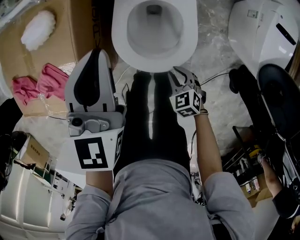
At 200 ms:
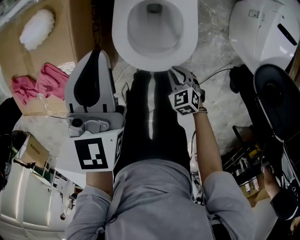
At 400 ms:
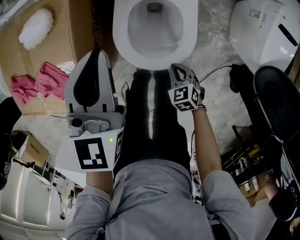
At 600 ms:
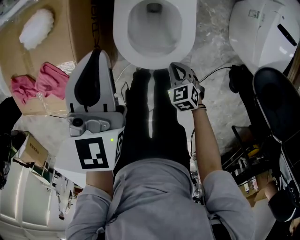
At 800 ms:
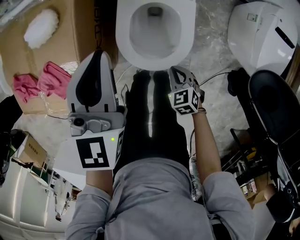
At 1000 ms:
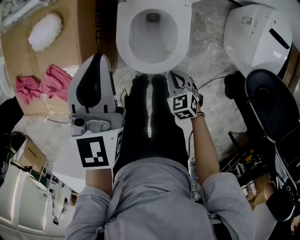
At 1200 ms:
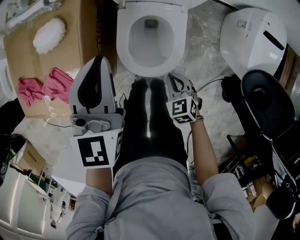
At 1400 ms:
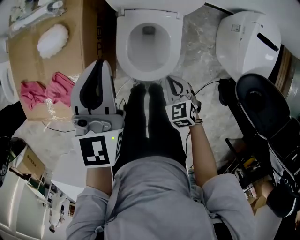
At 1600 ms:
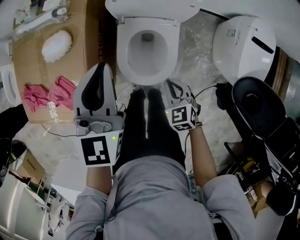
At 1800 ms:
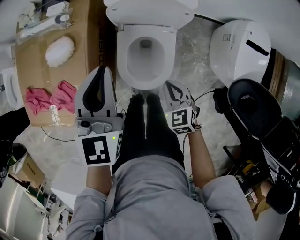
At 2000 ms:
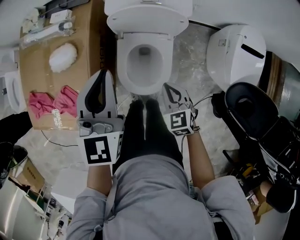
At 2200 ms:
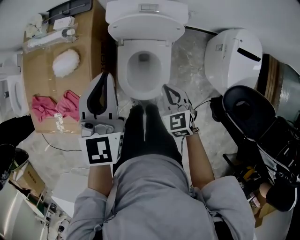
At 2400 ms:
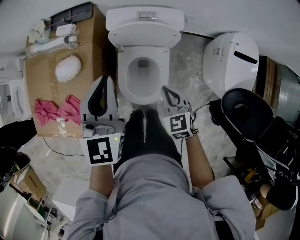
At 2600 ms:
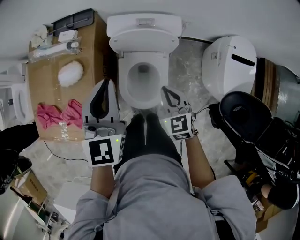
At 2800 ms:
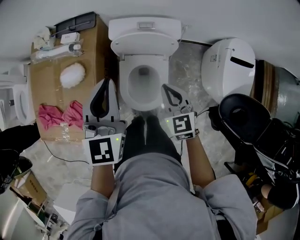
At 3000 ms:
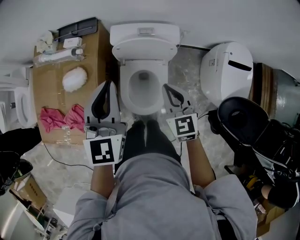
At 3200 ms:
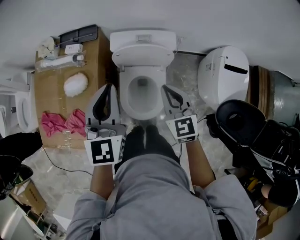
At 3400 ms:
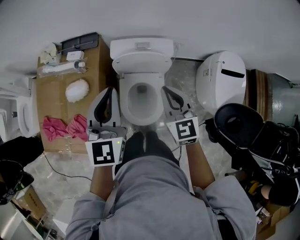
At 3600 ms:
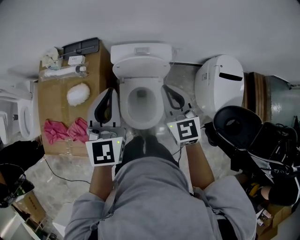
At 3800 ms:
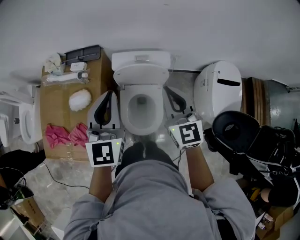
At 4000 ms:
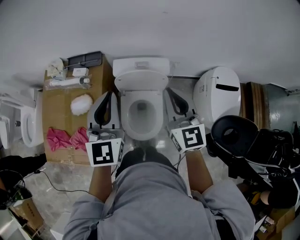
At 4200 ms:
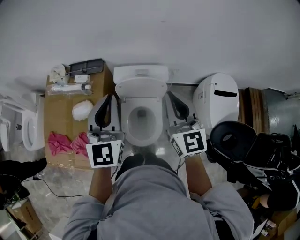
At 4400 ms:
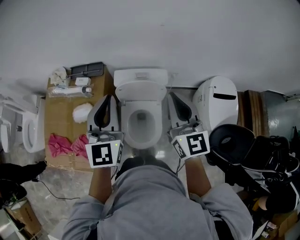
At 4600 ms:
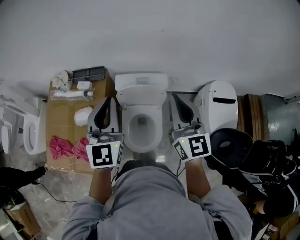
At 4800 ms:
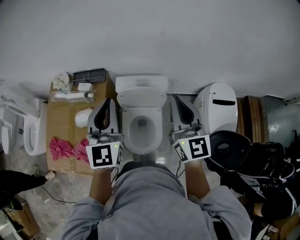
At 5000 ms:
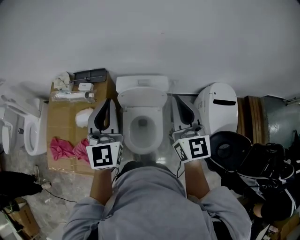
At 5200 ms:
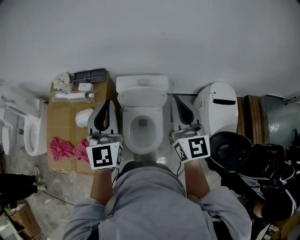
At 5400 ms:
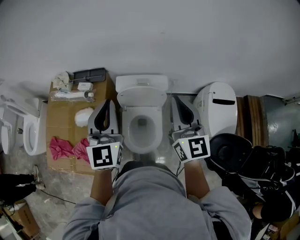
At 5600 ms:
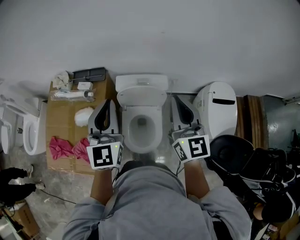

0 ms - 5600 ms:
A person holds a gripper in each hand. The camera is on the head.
0 ms - 1400 ms: The right gripper shifts approximately 10 cm upward and forward; the left gripper heads upward, covering about 5 cm.
1400 ms - 2800 ms: The right gripper shifts roughly 25 cm upward and forward, and swivels some 20 degrees. The left gripper heads upward, covering approximately 10 cm.
2800 ms - 4200 ms: The right gripper travels upward by approximately 25 cm, and turns by about 30 degrees, while the left gripper is displaced upward by about 10 cm.
4200 ms - 5600 ms: The right gripper shifts by some 5 cm.

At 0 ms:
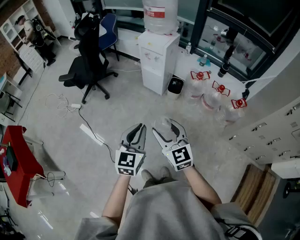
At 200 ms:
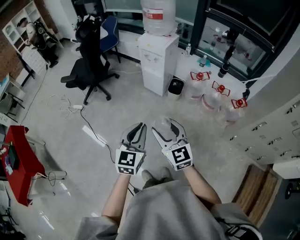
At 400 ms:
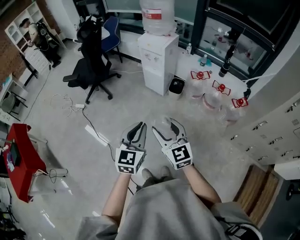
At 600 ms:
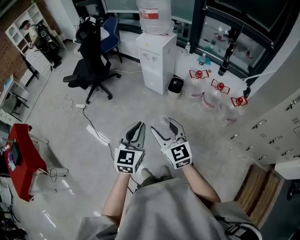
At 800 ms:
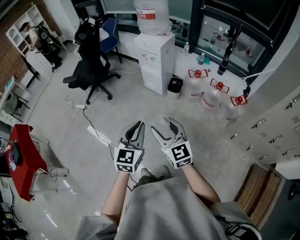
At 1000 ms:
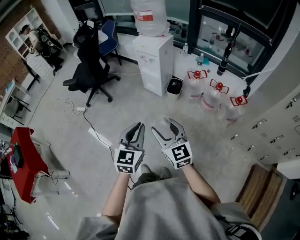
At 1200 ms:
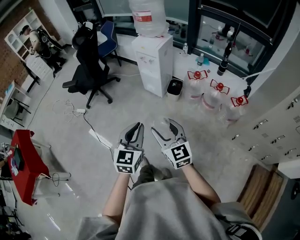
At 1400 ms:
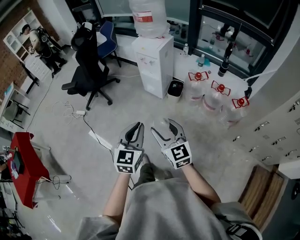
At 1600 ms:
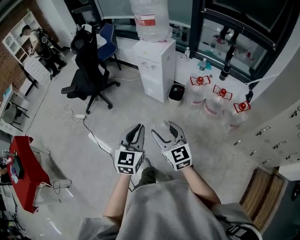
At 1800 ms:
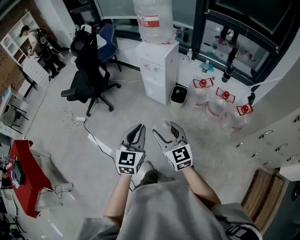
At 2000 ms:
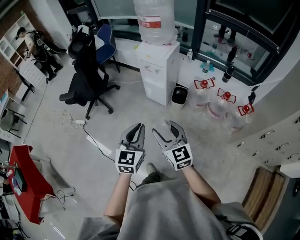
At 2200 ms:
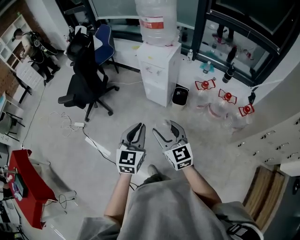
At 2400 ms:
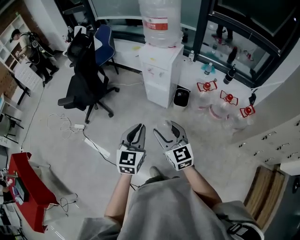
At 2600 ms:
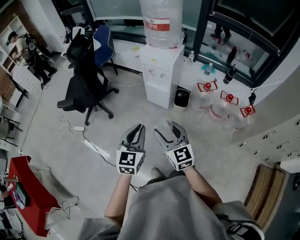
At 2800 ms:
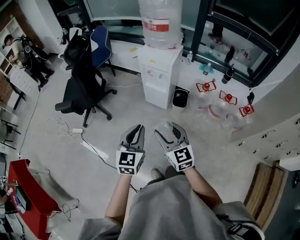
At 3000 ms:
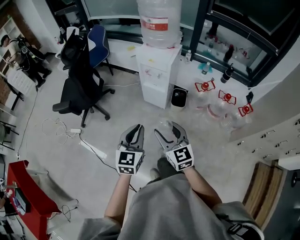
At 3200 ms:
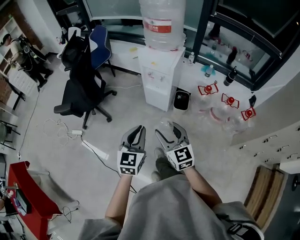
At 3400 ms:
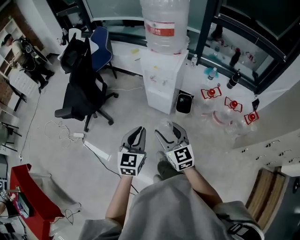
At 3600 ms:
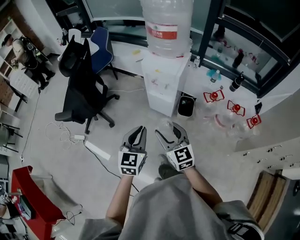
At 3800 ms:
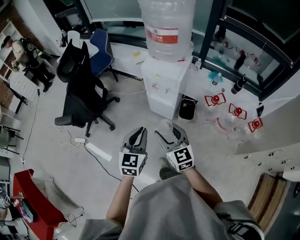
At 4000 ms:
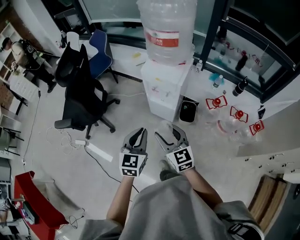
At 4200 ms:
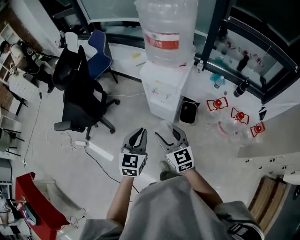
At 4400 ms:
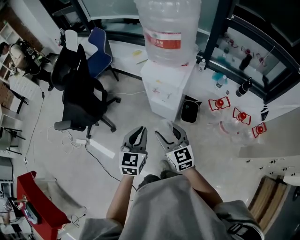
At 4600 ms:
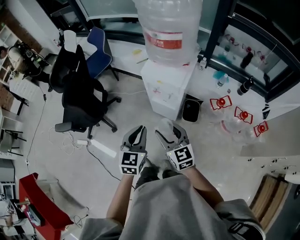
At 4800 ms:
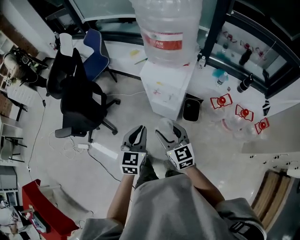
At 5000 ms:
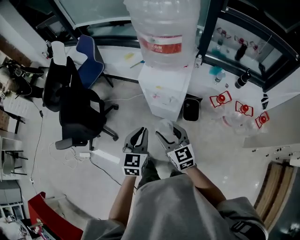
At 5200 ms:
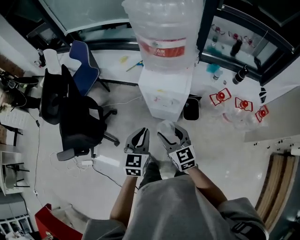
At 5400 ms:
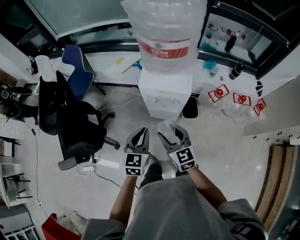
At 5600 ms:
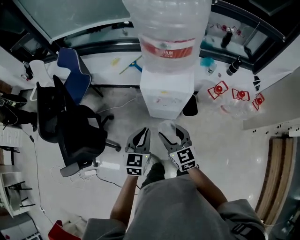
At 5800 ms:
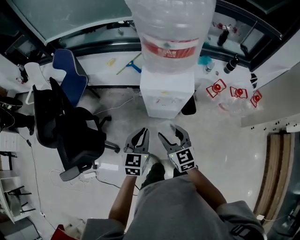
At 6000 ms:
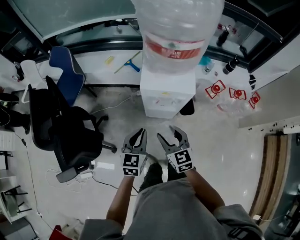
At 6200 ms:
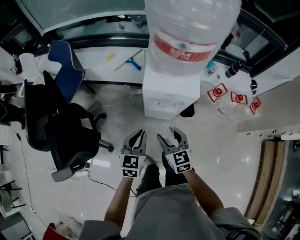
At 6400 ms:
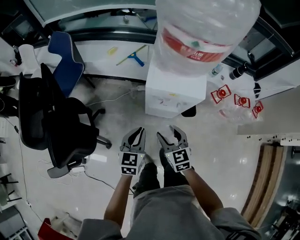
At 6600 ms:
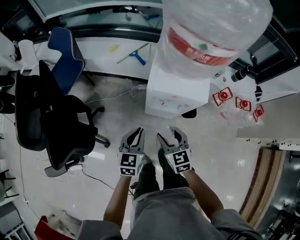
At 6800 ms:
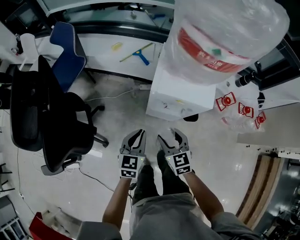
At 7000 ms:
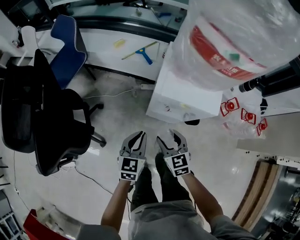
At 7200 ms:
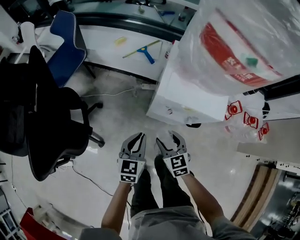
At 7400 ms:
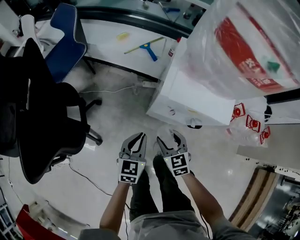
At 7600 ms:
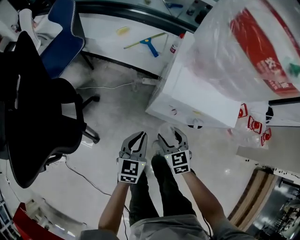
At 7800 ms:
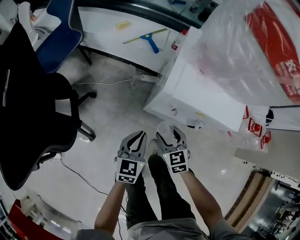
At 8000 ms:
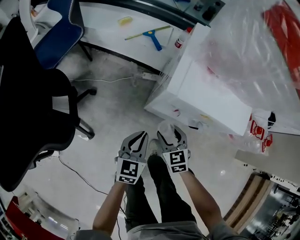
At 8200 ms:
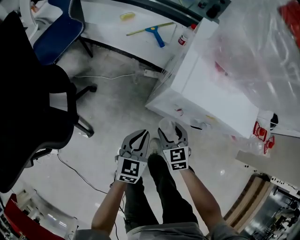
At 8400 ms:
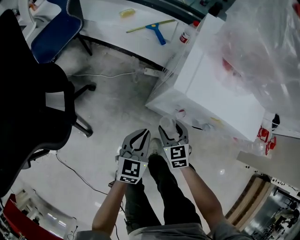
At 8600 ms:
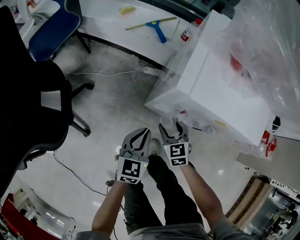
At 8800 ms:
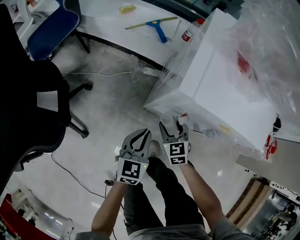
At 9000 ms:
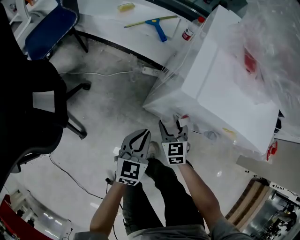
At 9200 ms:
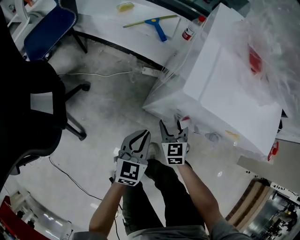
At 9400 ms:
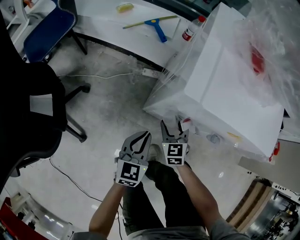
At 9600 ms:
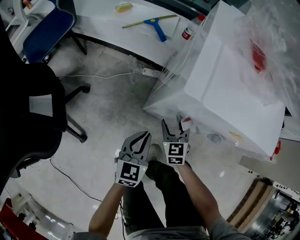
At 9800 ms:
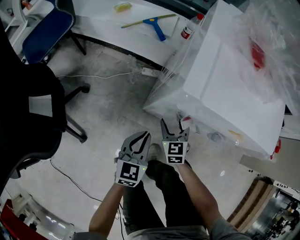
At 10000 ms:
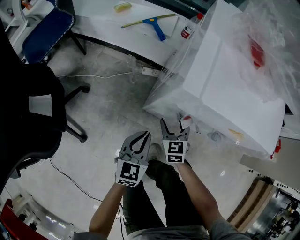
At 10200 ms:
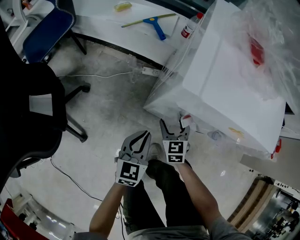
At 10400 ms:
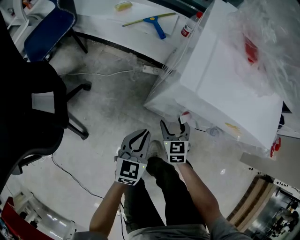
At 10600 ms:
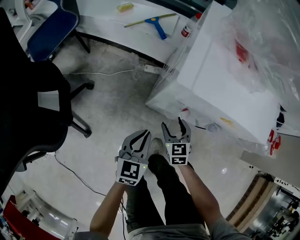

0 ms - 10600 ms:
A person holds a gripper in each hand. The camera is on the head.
0 ms - 1600 ms: The grippers both shift to the right by some 5 cm.
1600 ms - 3000 ms: The grippers both shift forward and to the left by about 20 cm.
3000 ms - 4600 ms: Both grippers travel together forward, about 25 cm.
4600 ms - 6000 ms: Both grippers move forward, to the left and downward, approximately 20 cm. The left gripper turns by approximately 20 degrees, while the right gripper changes its angle by about 30 degrees.
6000 ms - 7600 ms: Both grippers travel together downward and forward, roughly 25 cm.
7600 ms - 9000 ms: The left gripper goes approximately 15 cm downward. Meanwhile the right gripper travels downward and forward by some 20 cm.
9000 ms - 10600 ms: The grippers make only small movements.

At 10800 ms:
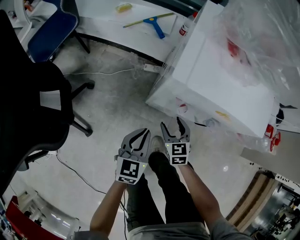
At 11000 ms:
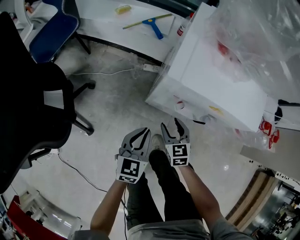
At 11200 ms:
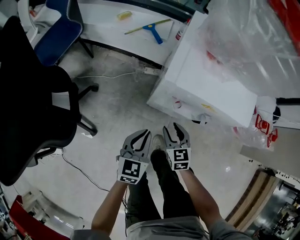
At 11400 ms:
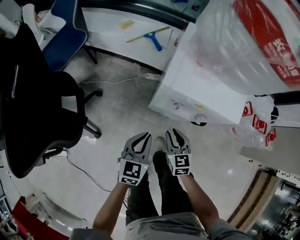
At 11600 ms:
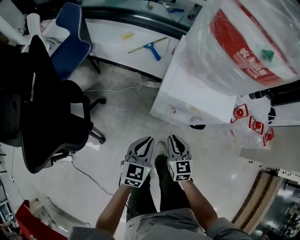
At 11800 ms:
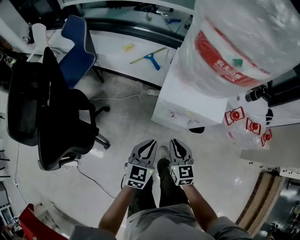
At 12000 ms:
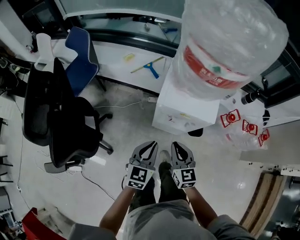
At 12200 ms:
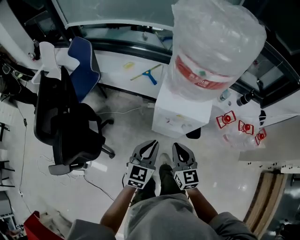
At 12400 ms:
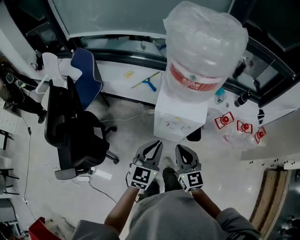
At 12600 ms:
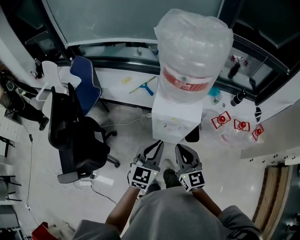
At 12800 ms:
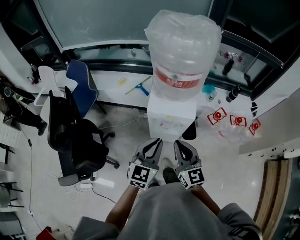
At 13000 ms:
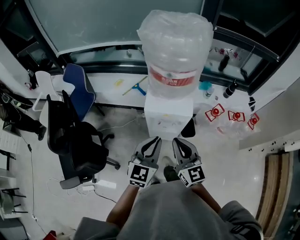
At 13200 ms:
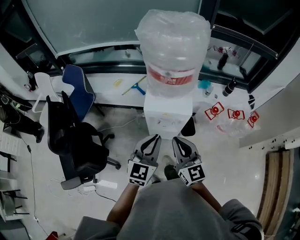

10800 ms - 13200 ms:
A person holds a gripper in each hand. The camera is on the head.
10800 ms - 12000 ms: The grippers both shift upward by about 30 cm. The right gripper closes up.
12000 ms - 13200 ms: Both grippers move upward, some 20 cm.

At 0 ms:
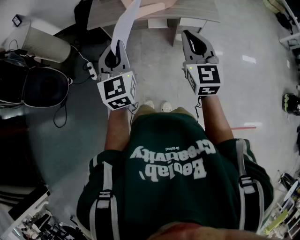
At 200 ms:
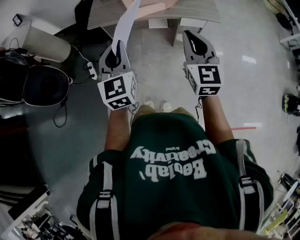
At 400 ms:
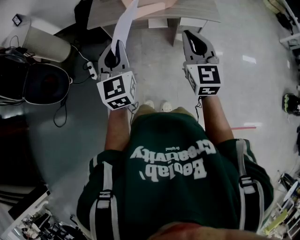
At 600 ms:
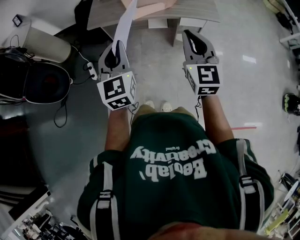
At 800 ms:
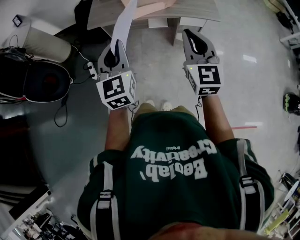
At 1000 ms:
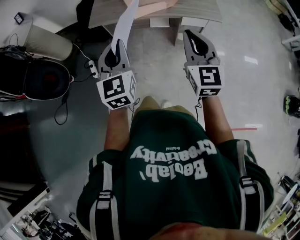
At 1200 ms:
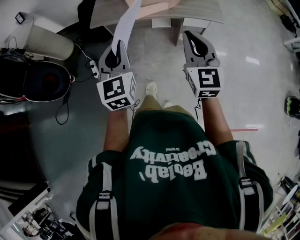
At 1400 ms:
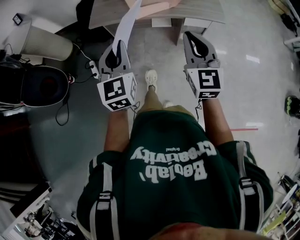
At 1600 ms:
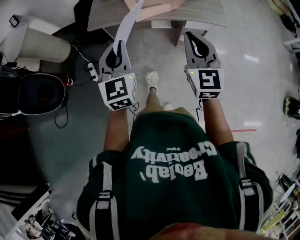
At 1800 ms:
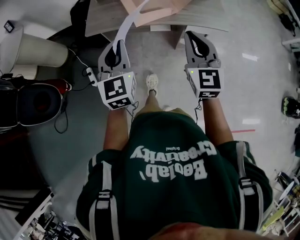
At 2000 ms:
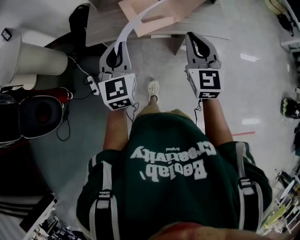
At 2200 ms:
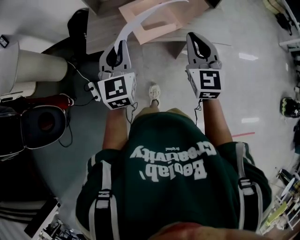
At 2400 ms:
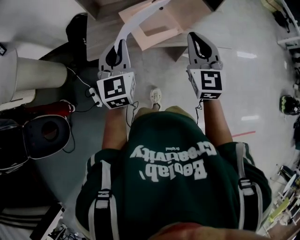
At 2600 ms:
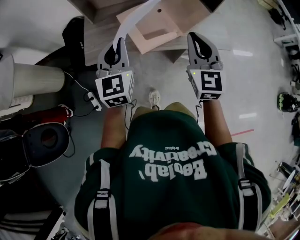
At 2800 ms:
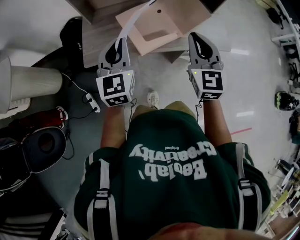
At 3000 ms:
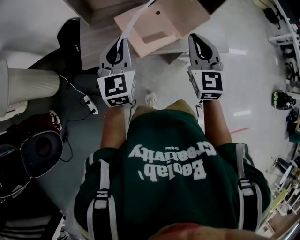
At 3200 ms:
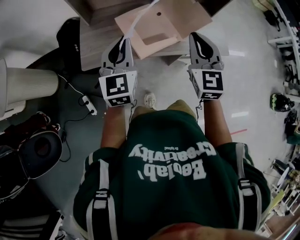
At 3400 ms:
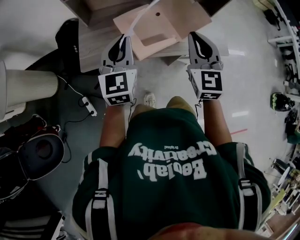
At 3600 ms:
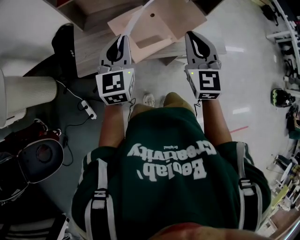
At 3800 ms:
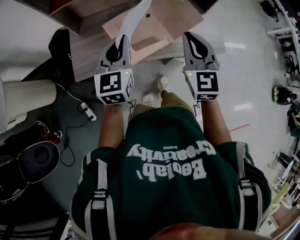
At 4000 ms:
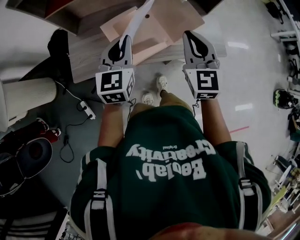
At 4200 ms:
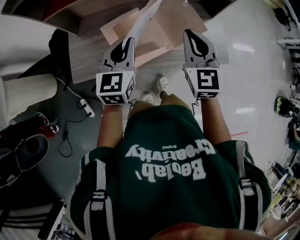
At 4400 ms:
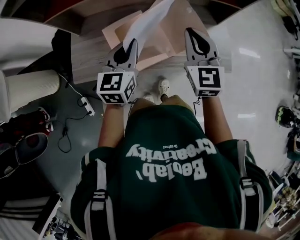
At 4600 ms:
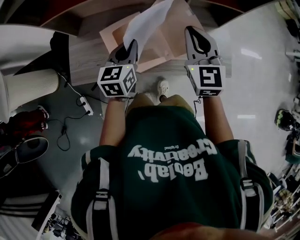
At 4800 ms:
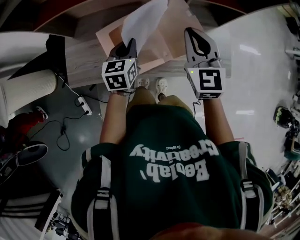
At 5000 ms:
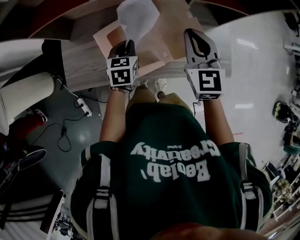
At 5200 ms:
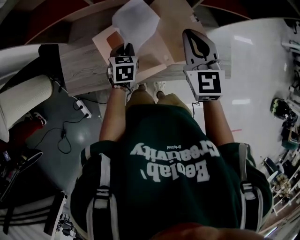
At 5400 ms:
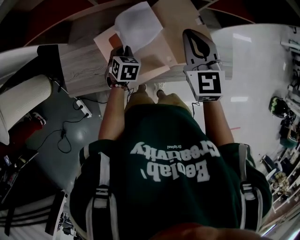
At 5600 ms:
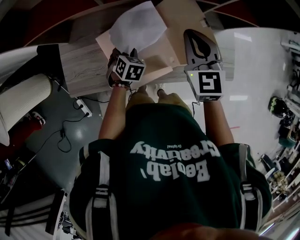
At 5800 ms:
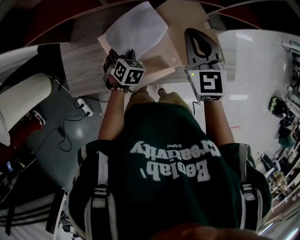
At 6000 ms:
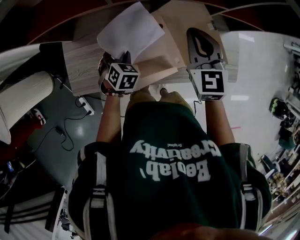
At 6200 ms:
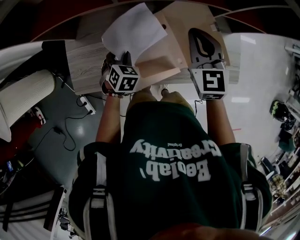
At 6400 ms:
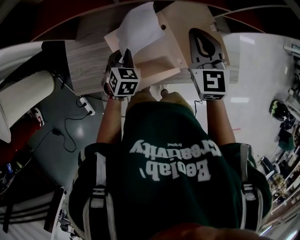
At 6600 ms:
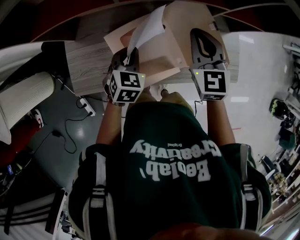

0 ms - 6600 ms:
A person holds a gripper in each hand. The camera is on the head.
0 ms - 1600 ms: The grippers both shift forward by about 5 cm.
1600 ms - 3200 ms: The grippers both shift forward by roughly 35 cm.
3200 ms - 5000 ms: The left gripper goes about 35 cm forward, downward and to the right, and tips its fingers downward by some 30 degrees. The right gripper is displaced forward by roughly 25 cm.
5000 ms - 6600 ms: The right gripper moves to the left and forward, roughly 10 cm. Meanwhile the left gripper heads to the left, covering some 5 cm, changes its angle by roughly 20 degrees, and opens and closes again.
